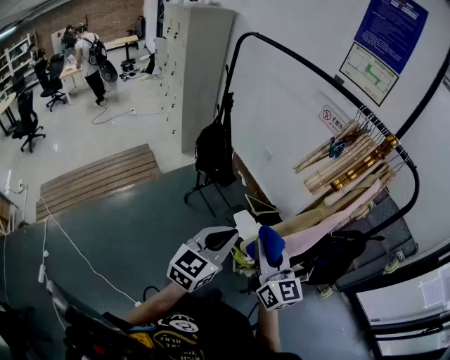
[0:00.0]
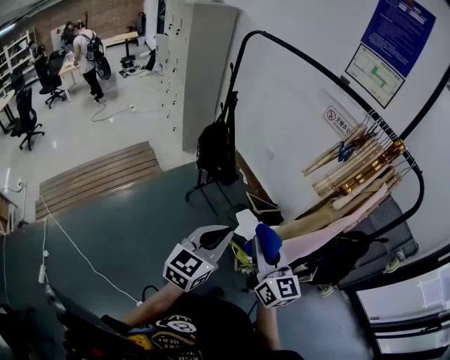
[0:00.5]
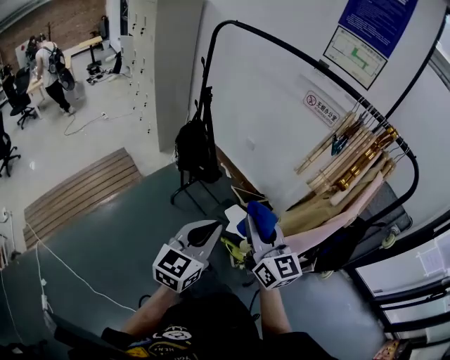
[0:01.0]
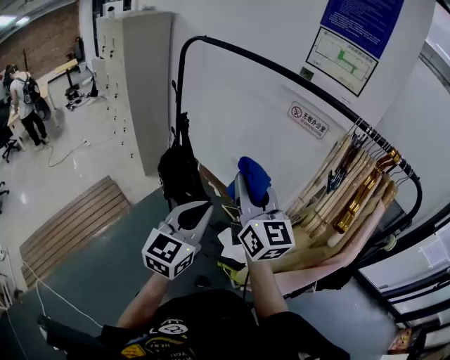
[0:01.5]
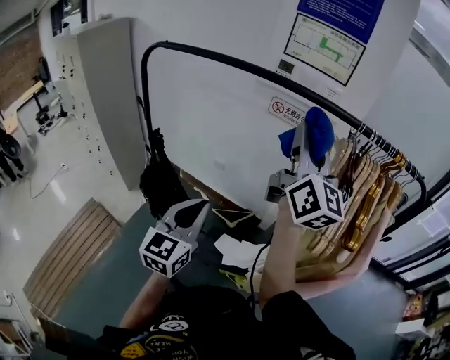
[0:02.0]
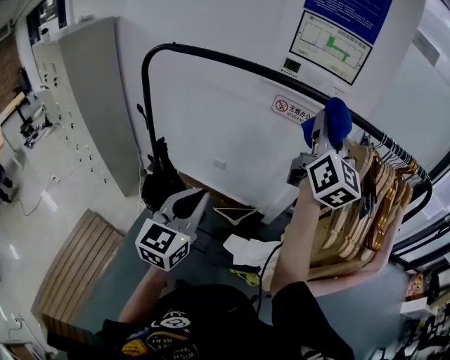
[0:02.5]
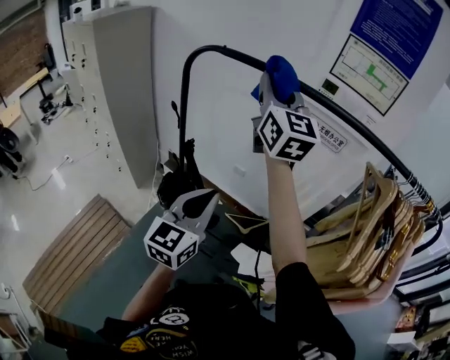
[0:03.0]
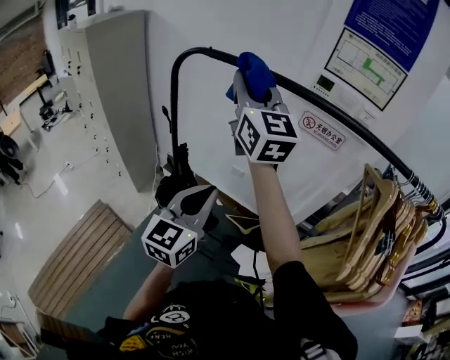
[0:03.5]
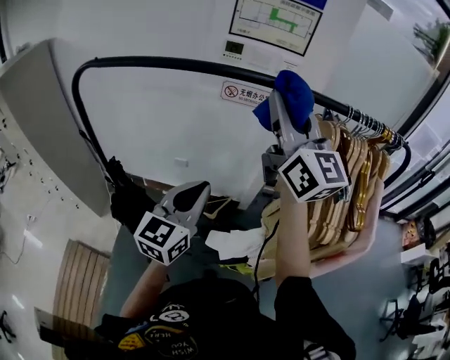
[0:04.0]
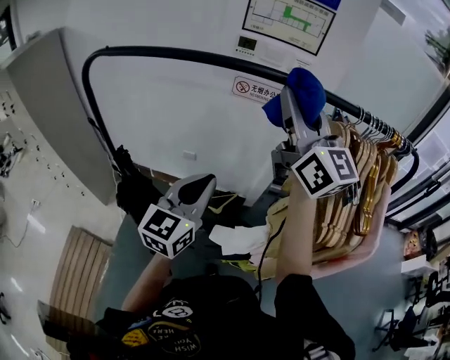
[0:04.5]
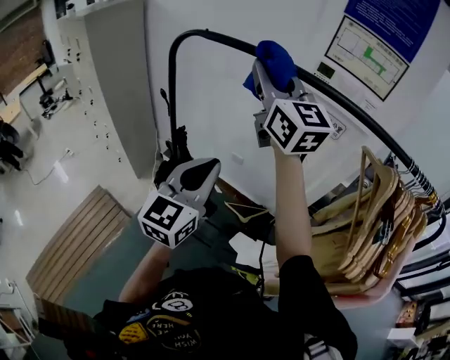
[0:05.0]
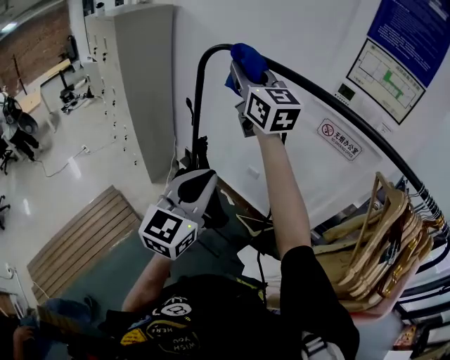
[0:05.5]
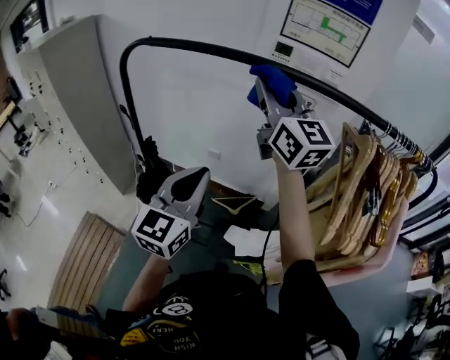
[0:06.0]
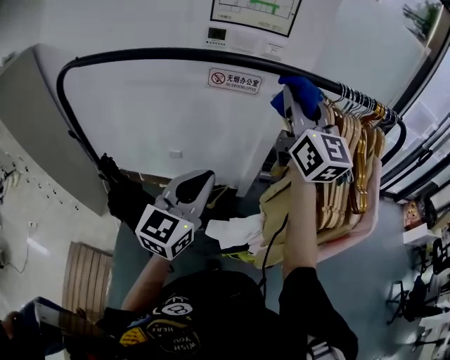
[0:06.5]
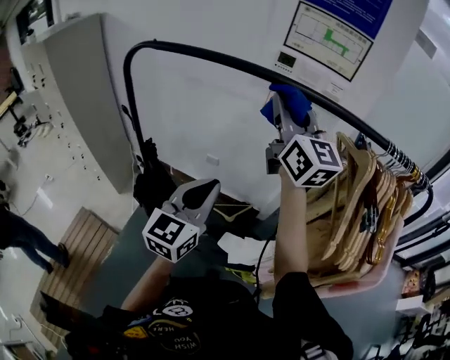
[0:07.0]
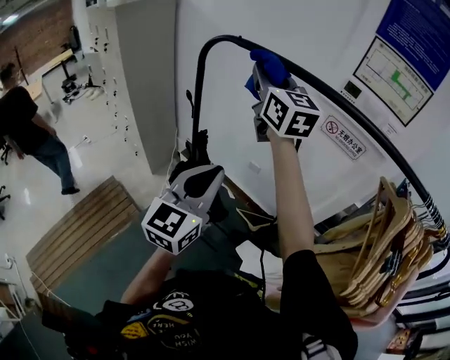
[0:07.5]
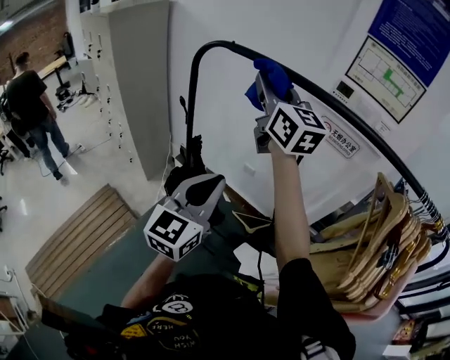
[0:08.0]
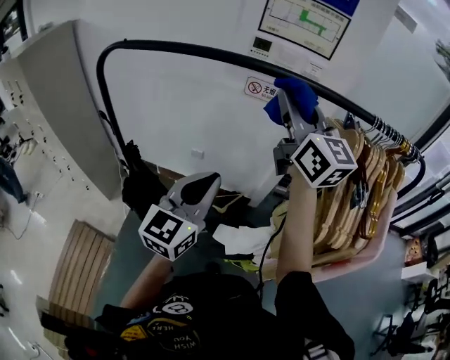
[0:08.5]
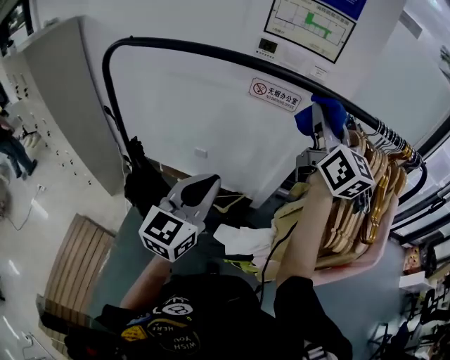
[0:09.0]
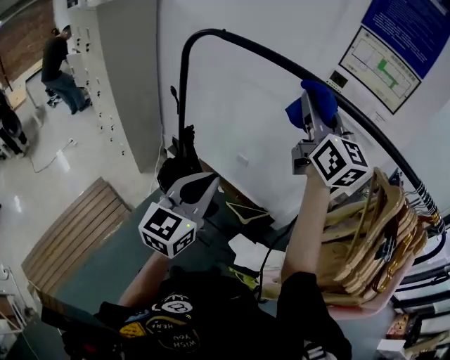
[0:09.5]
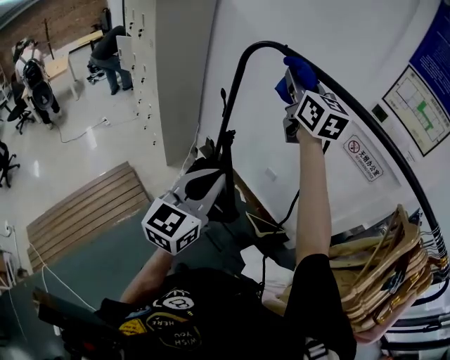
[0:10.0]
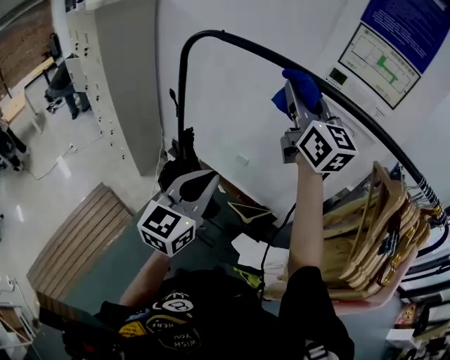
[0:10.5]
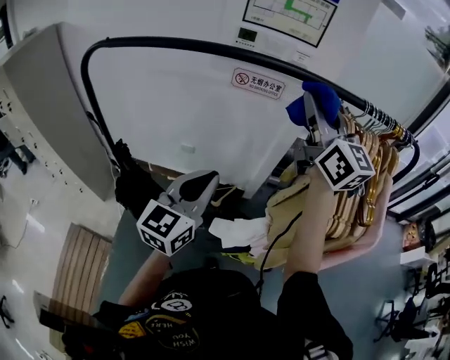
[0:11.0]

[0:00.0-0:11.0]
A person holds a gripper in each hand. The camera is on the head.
0:00.0 to 0:02.0: The right gripper ends up about 50 cm from where it was, and rotates about 50 degrees. Meanwhile the left gripper shifts by approximately 35 cm.
0:02.0 to 0:03.5: The right gripper goes approximately 35 cm to the left and forward, and swivels about 20 degrees, while the left gripper travels to the left and forward by roughly 15 cm.
0:07.5 to 0:09.0: The left gripper ends up some 15 cm from where it was, and rotates approximately 20 degrees, while the right gripper changes place by roughly 35 cm, and swivels roughly 30 degrees.

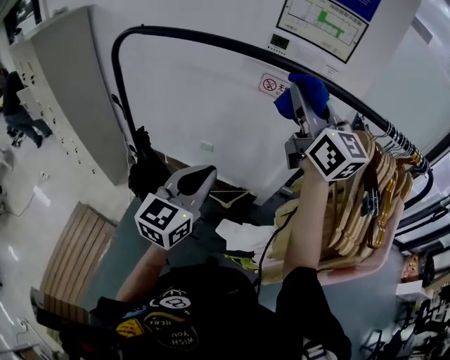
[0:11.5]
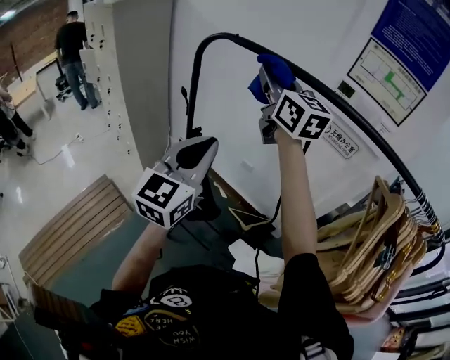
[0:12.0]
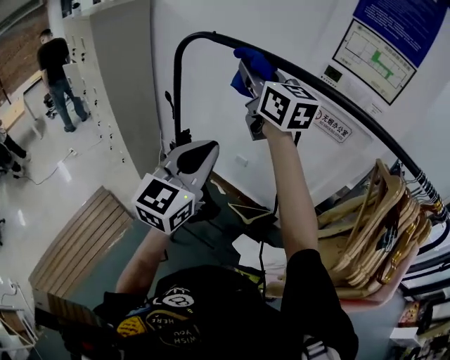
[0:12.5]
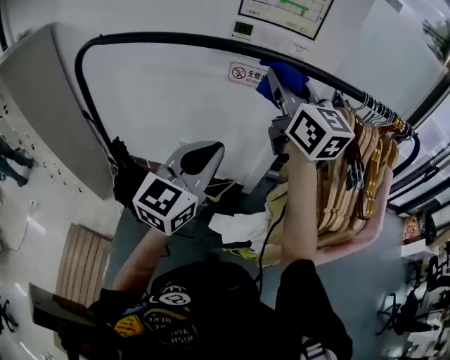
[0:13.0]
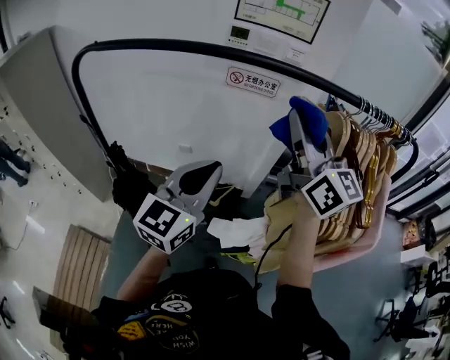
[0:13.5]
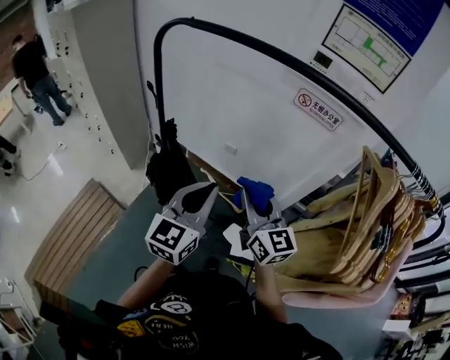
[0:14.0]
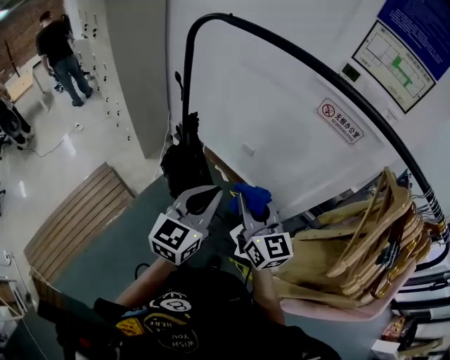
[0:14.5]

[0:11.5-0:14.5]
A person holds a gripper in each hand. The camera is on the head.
0:11.5 to 0:13.0: The left gripper goes roughly 5 cm upward.
0:13.0 to 0:14.5: The left gripper changes place by about 20 cm, and swivels about 30 degrees. The right gripper shifts approximately 25 cm downward, and swivels about 30 degrees.

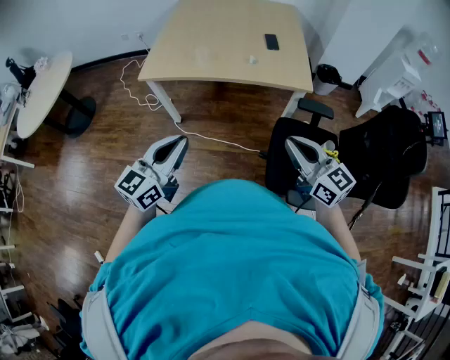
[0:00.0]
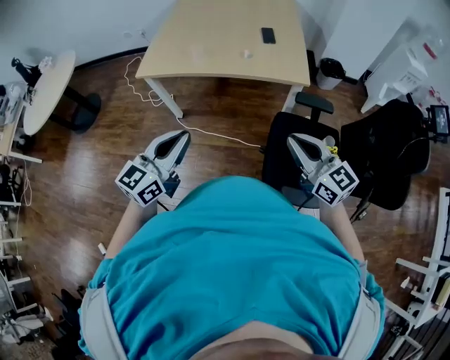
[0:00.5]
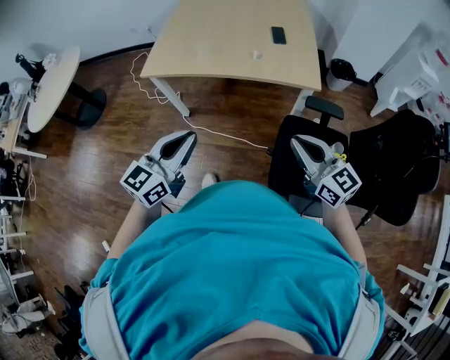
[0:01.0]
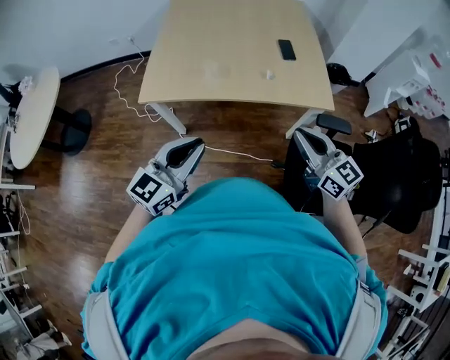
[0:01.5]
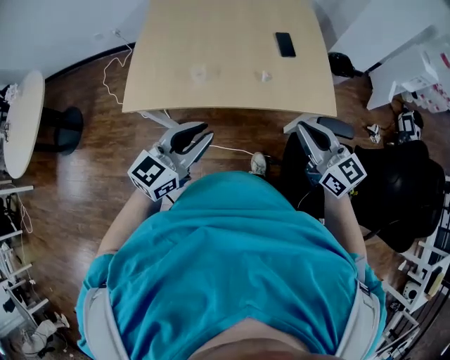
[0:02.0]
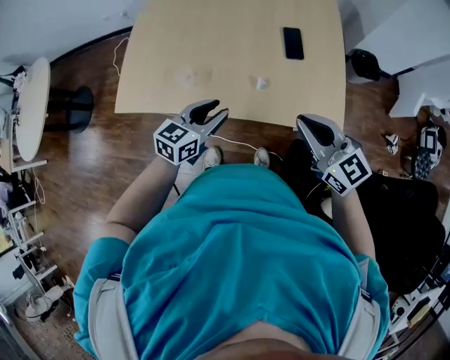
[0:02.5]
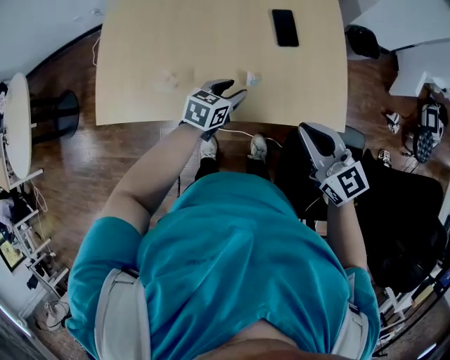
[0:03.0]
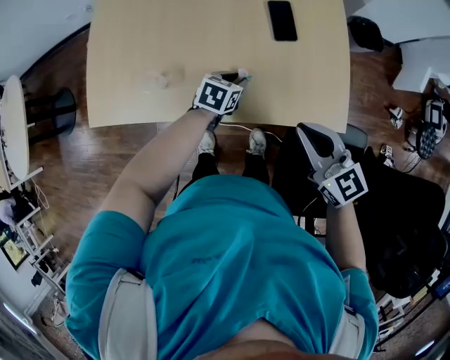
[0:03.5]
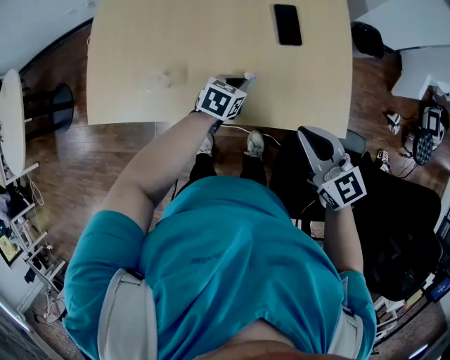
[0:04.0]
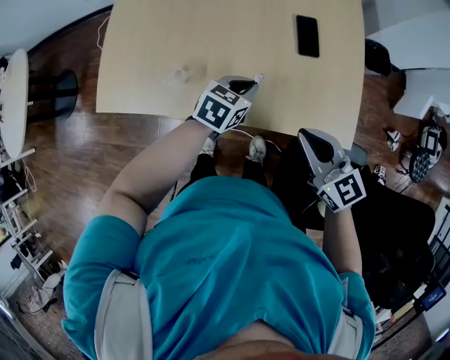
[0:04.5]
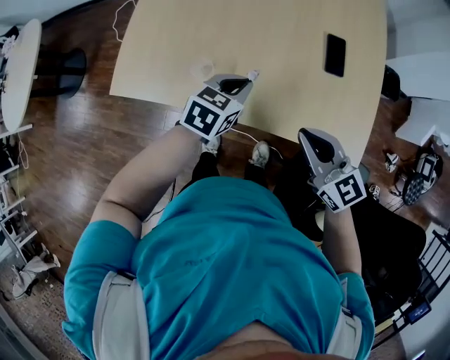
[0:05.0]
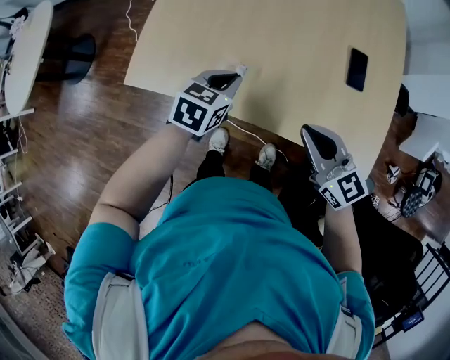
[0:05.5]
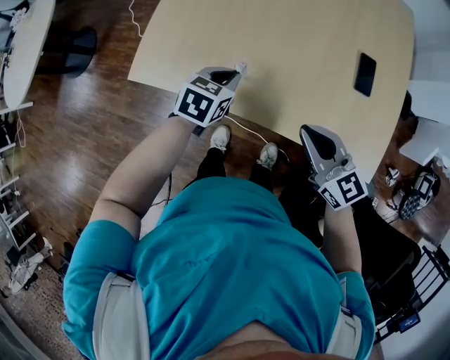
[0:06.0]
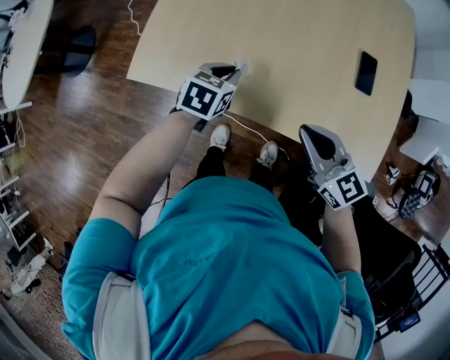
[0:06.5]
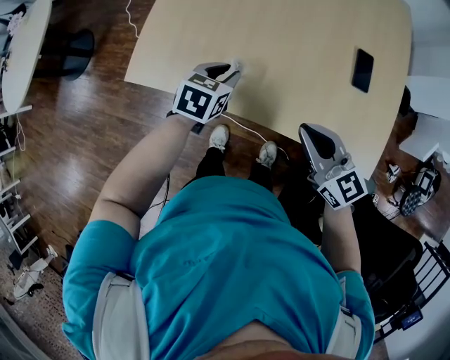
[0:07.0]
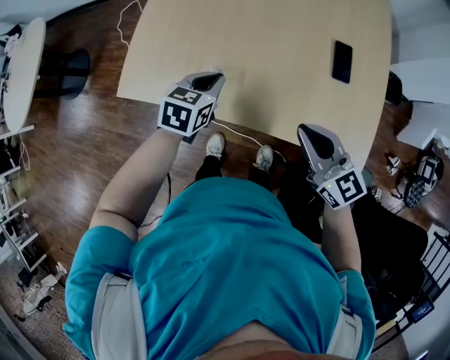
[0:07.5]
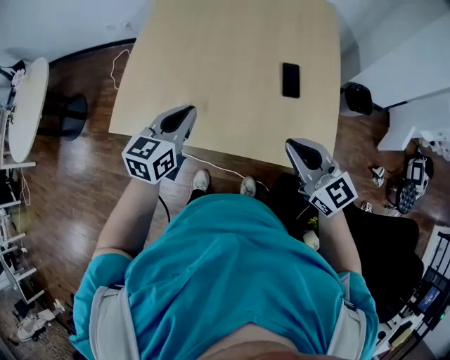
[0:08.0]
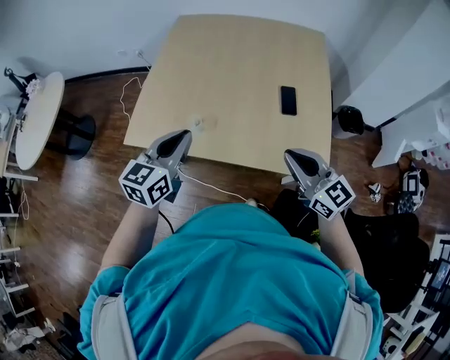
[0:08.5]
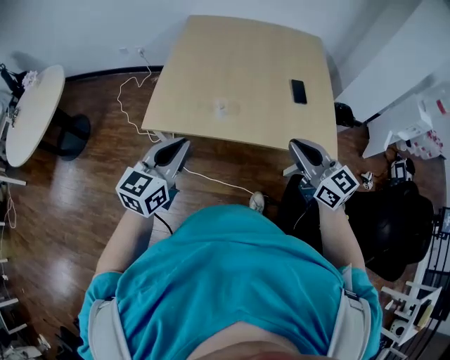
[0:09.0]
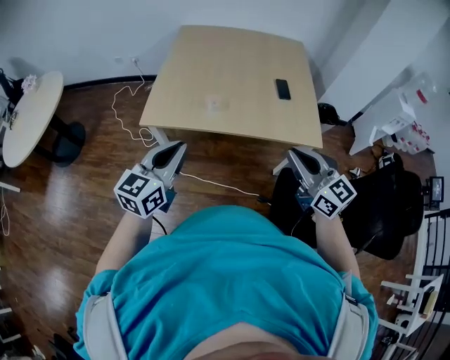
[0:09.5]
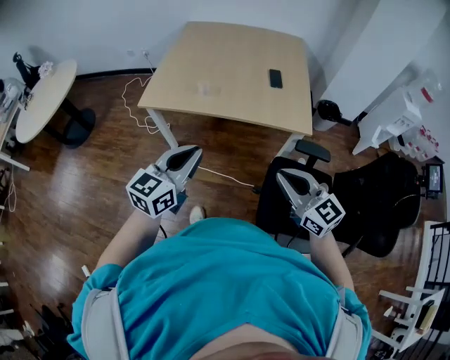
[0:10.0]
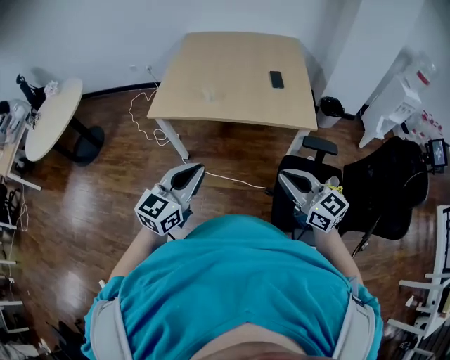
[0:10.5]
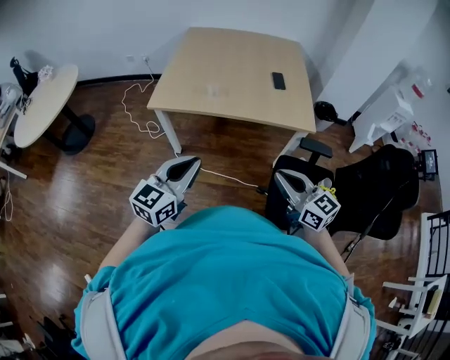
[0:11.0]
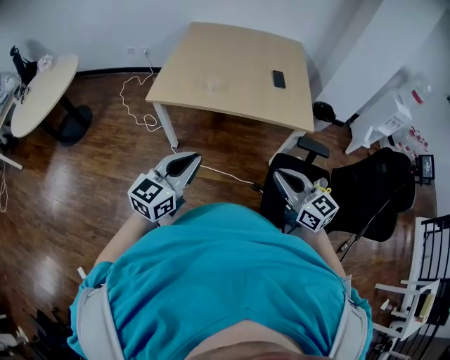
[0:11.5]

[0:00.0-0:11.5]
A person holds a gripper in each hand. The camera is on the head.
0:00.0 to 0:02.0: The two grippers go about 30 cm forward.
0:02.0 to 0:04.0: The right gripper shifts roughly 25 cm forward, downward and to the right, while the left gripper moves downward, forward and to the right, approximately 50 cm, tilts its fingers approximately 40 degrees downward, and opens, then closes again.
0:04.0 to 0:06.0: The grippers both shift to the left by approximately 25 cm.
0:06.0 to 0:07.5: The right gripper is displaced to the right by roughly 5 cm; the left gripper opens and closes again.
0:07.5 to 0:09.5: The right gripper travels backward and upward by about 35 cm; the left gripper travels backward, upward and to the left by roughly 50 cm, and tips its fingers upward by roughly 40 degrees.
0:09.5 to 0:11.5: The grippers both shift backward by about 20 cm.

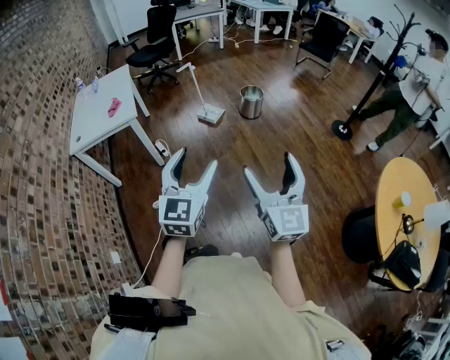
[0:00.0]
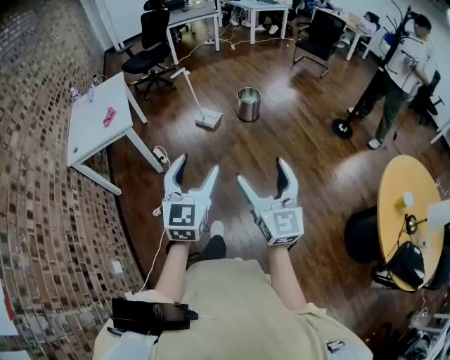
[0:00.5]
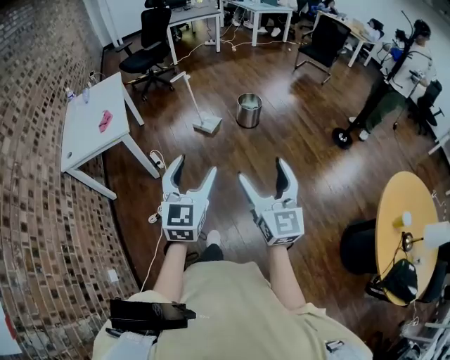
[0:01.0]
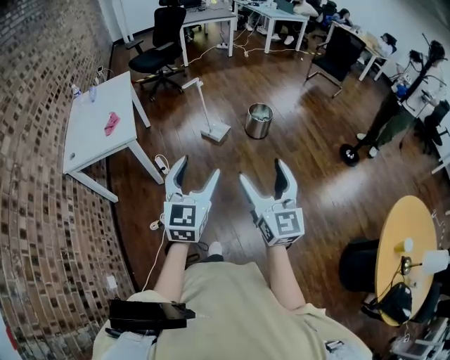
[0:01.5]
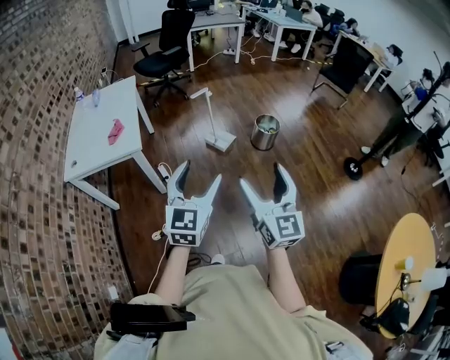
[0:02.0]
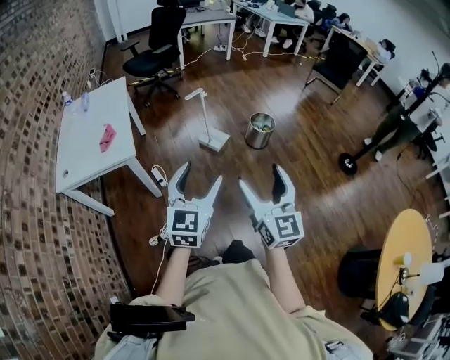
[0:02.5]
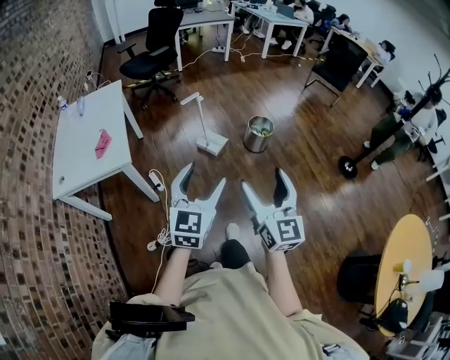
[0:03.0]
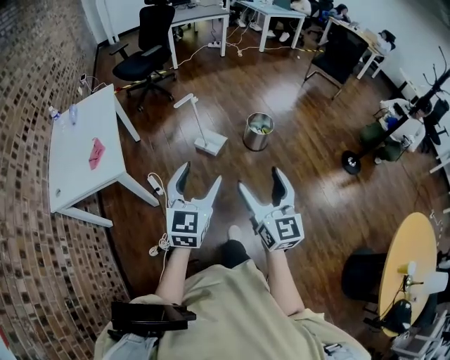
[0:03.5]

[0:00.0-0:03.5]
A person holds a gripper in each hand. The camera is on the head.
0:00.0 to 0:02.0: The grippers both shift forward by some 25 cm.
0:02.0 to 0:03.5: Both grippers move forward, roughly 15 cm.
